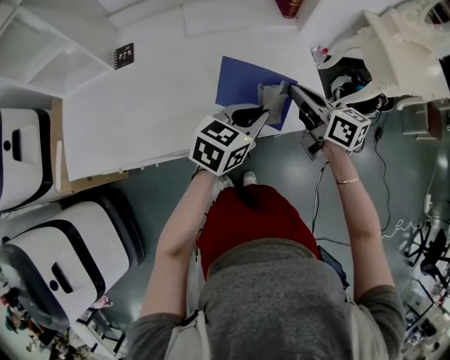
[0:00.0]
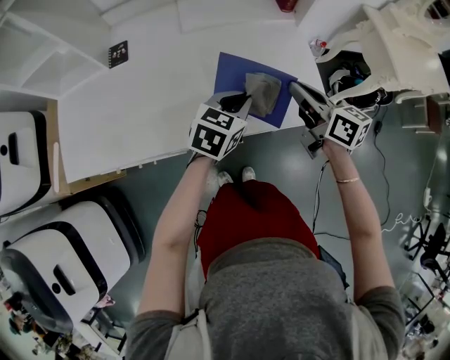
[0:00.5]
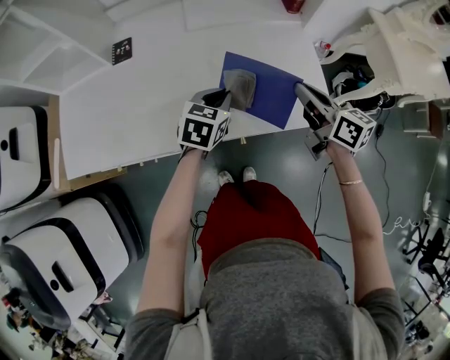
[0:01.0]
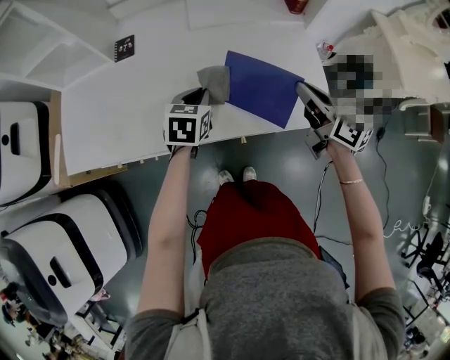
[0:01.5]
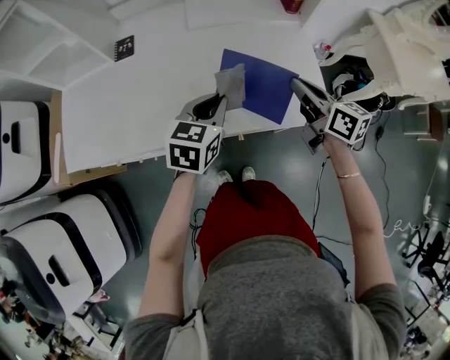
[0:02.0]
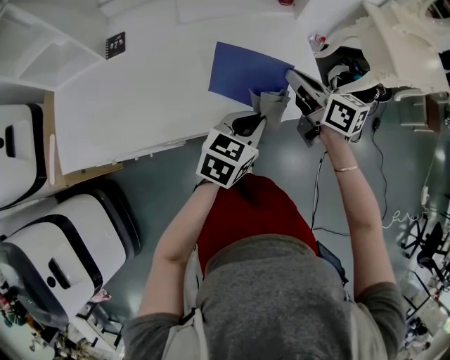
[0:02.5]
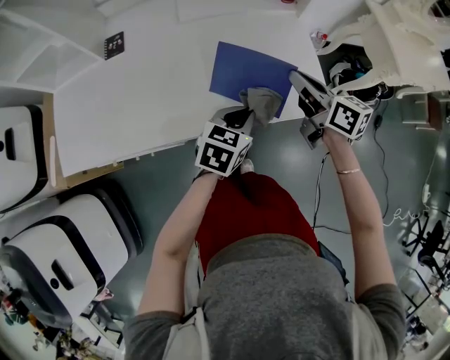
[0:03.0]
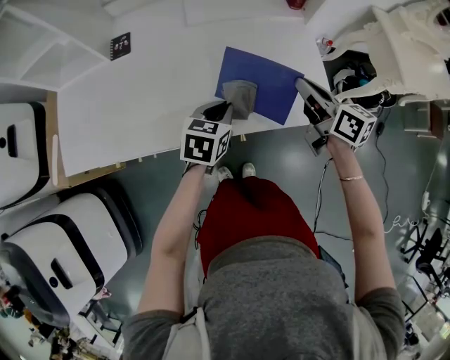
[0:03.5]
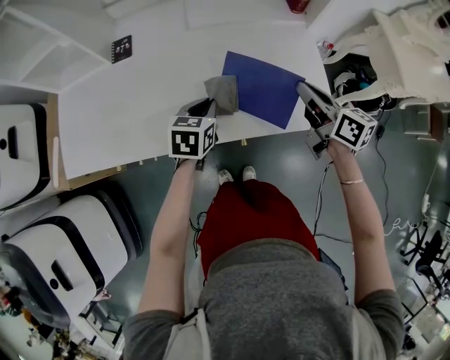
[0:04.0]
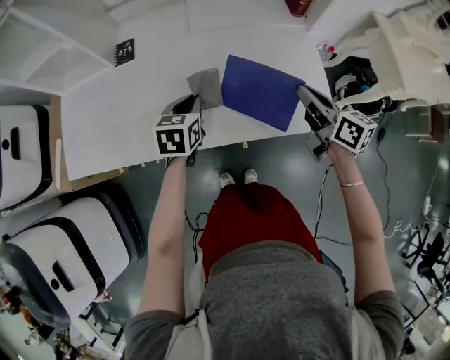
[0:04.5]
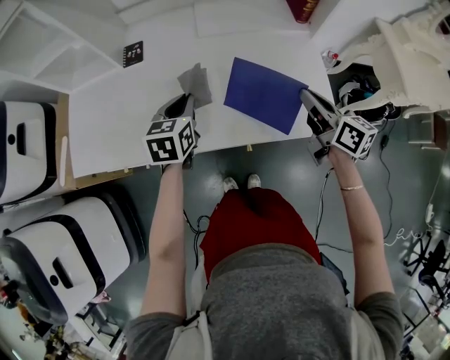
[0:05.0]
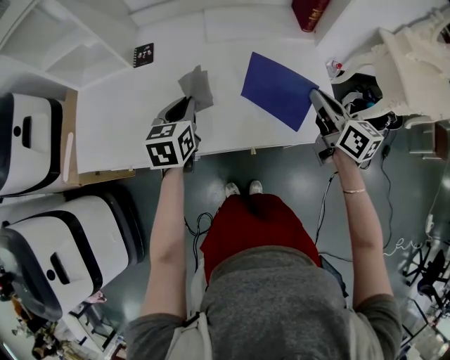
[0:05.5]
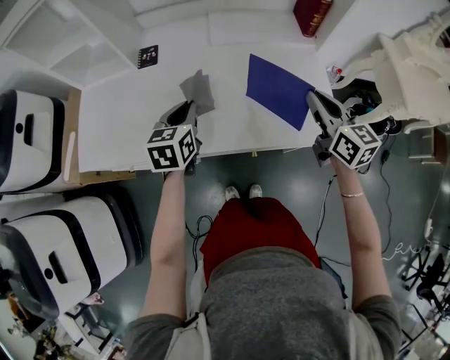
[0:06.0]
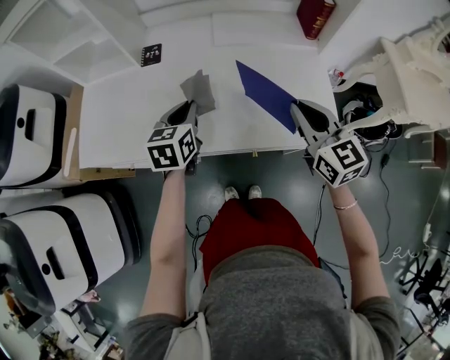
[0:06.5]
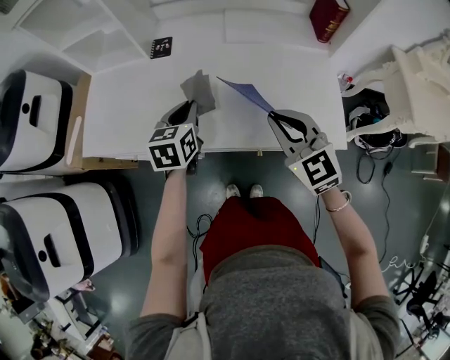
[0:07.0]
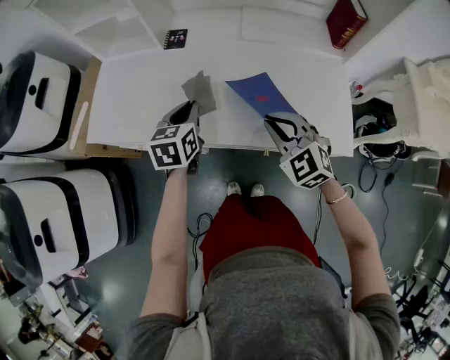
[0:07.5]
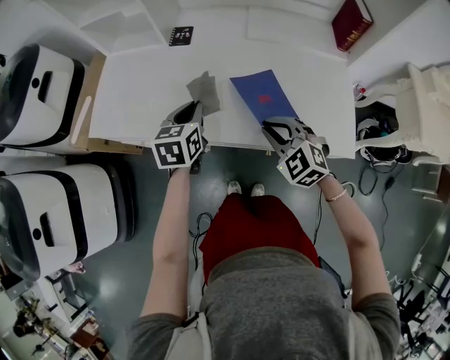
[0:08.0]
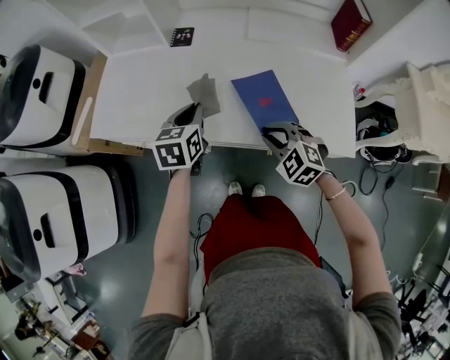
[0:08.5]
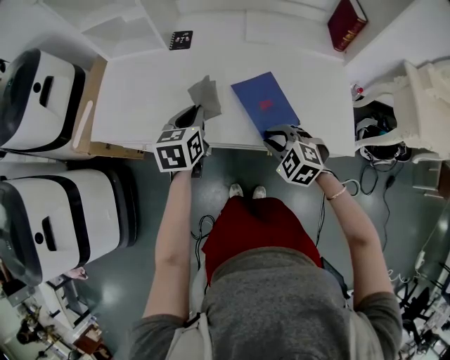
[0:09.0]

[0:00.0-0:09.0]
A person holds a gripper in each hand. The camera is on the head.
0:00.0 to 0:02.0: The left gripper goes roughly 10 cm to the left, and swivels roughly 20 degrees.
0:02.0 to 0:04.5: The left gripper heads to the left, downward and forward, covering some 10 cm.
0:04.5 to 0:07.0: The left gripper travels to the left and upward by roughly 10 cm. Meanwhile the right gripper travels to the left by approximately 15 cm, and twists about 60 degrees counterclockwise, seen from behind.
0:07.0 to 0:09.0: The right gripper moves downward, about 15 cm, and rotates some 40 degrees.

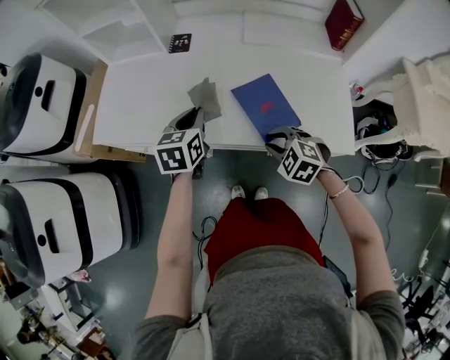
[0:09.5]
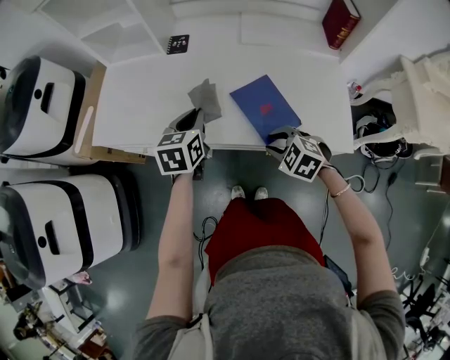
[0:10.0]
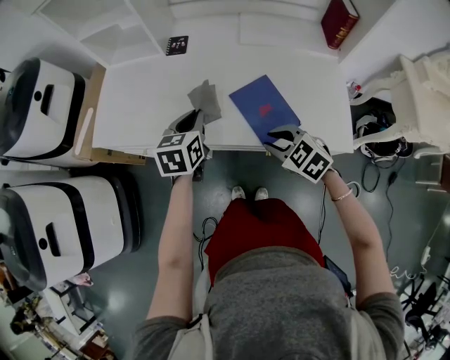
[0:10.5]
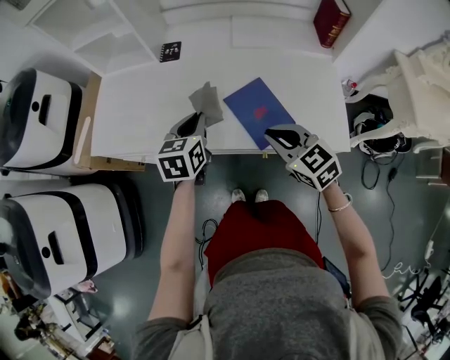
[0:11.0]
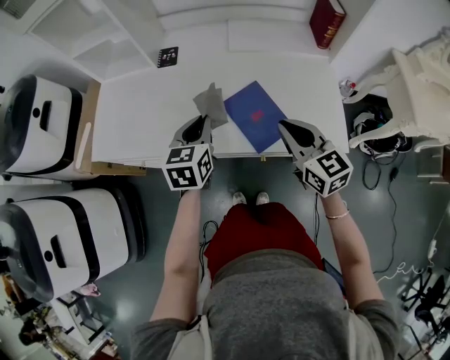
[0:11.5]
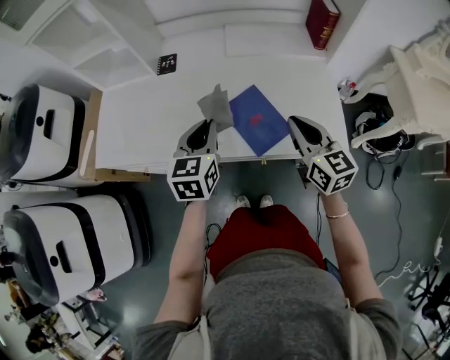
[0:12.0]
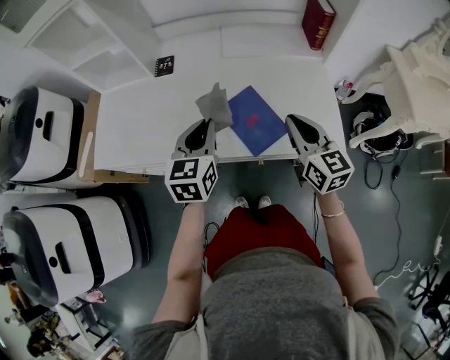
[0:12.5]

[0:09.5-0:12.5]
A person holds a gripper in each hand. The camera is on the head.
0:09.5 to 0:11.0: The right gripper shifts some 10 cm upward, and changes its angle by approximately 40 degrees.
0:11.0 to 0:12.5: The right gripper is displaced to the right by some 10 cm, and rotates about 30 degrees; the left gripper travels upward and to the right by roughly 10 cm.

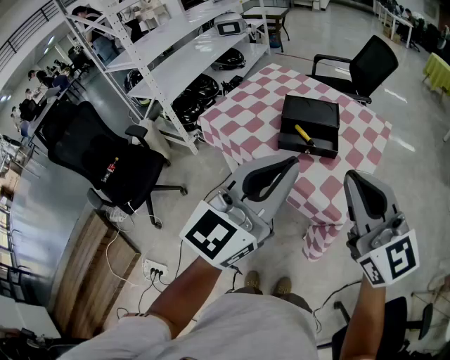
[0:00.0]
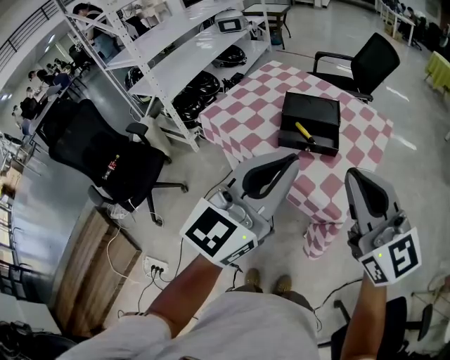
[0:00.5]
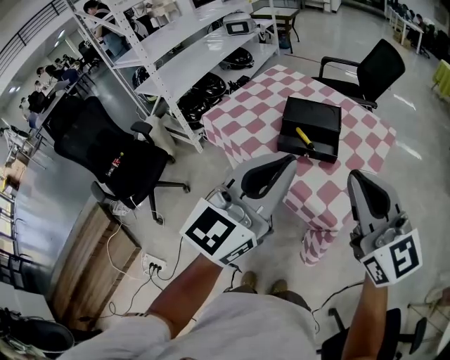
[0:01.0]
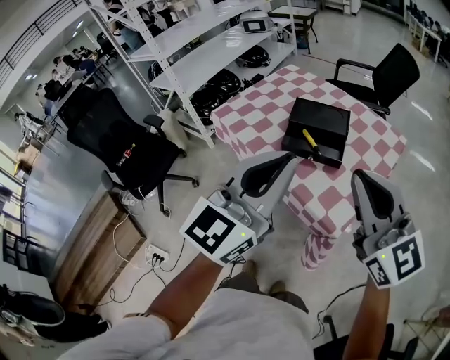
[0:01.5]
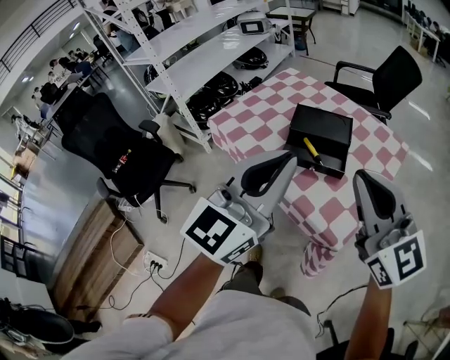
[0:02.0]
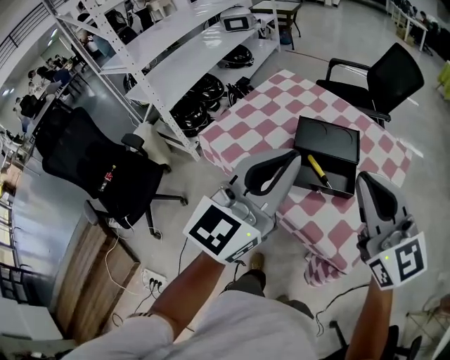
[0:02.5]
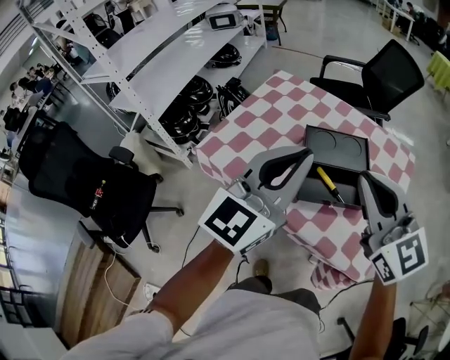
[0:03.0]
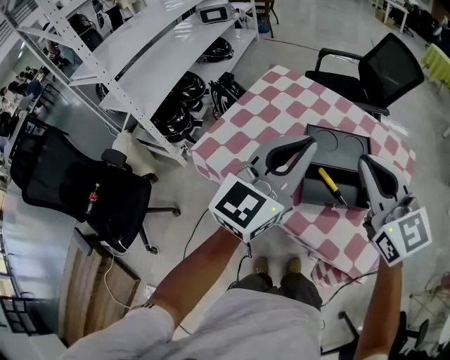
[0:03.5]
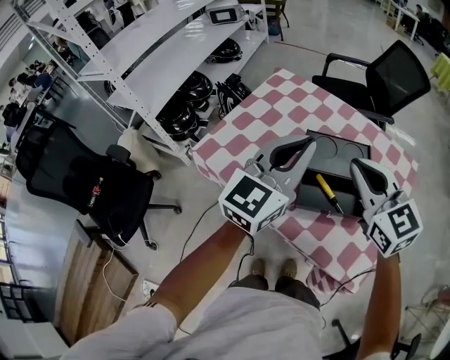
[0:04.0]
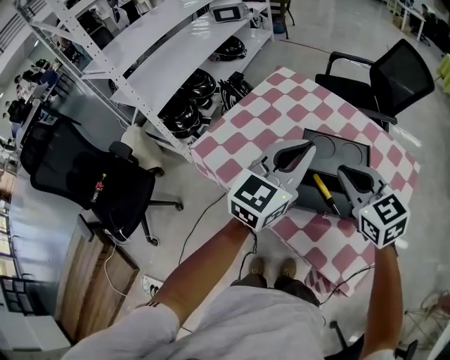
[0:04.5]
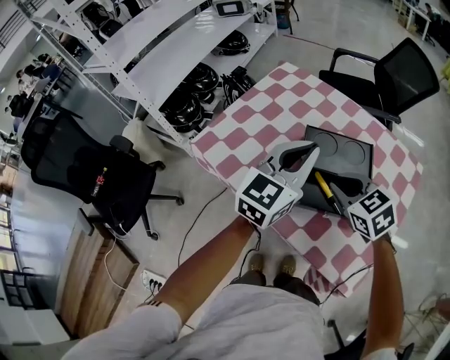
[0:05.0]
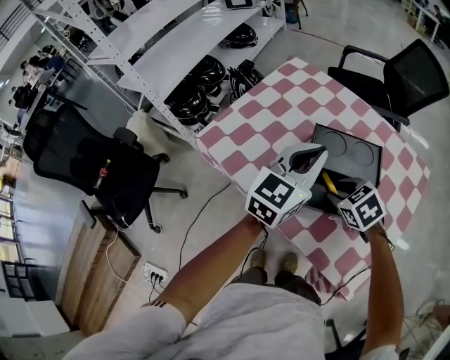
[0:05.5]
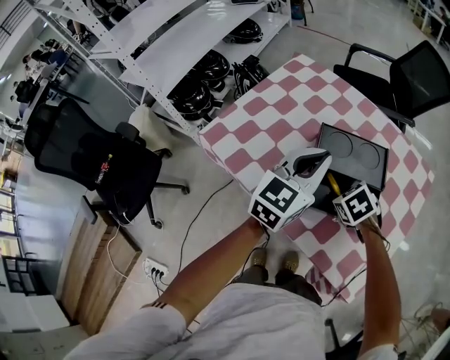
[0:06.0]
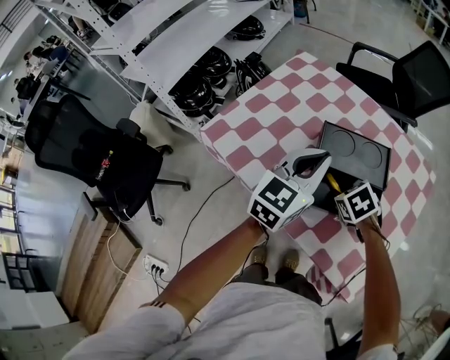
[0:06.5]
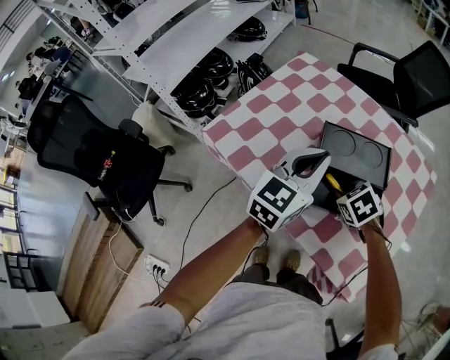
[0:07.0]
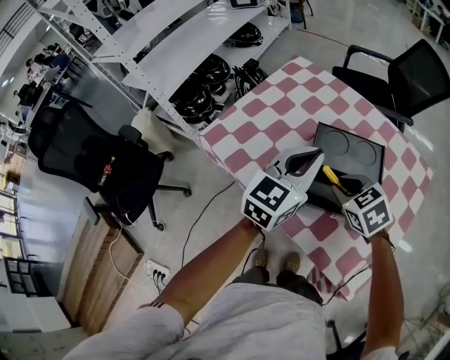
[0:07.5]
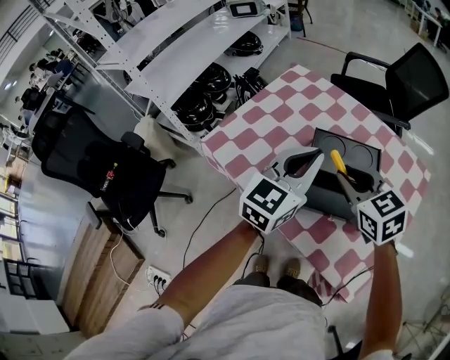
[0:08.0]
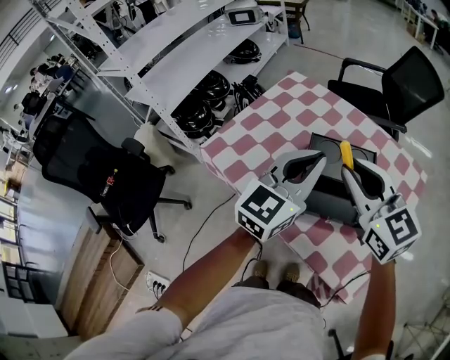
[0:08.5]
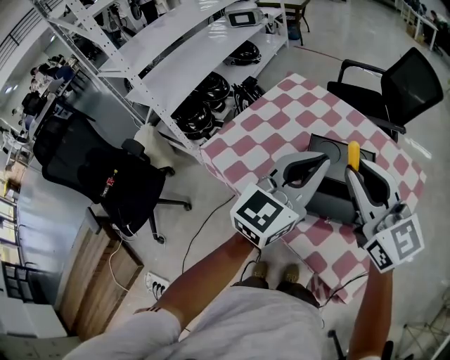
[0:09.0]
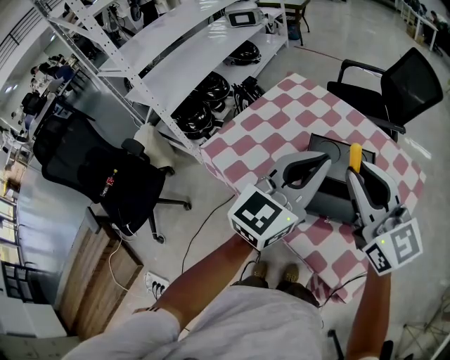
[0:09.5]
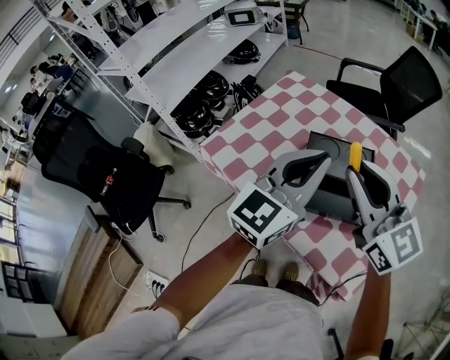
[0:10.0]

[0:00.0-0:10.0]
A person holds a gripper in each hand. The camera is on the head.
0:00.0 to 0:02.0: The two grippers go about 10 cm forward.
0:02.0 to 0:04.0: The left gripper is displaced forward by some 25 cm. The right gripper travels forward and to the left by about 25 cm, and changes its angle by approximately 20 degrees.
0:04.0 to 0:06.0: The left gripper travels downward by approximately 10 cm; the right gripper moves downward, approximately 25 cm, angles its fingers downward, by roughly 50 degrees, and opens.
0:06.0 to 0:08.0: The right gripper heads upward, covering some 15 cm, and points its fingers approximately 40 degrees further upward.
0:08.0 to 0:10.0: The left gripper heads upward, covering approximately 5 cm; the right gripper travels upward and backward by roughly 15 cm, and tips its fingers upward by about 30 degrees.

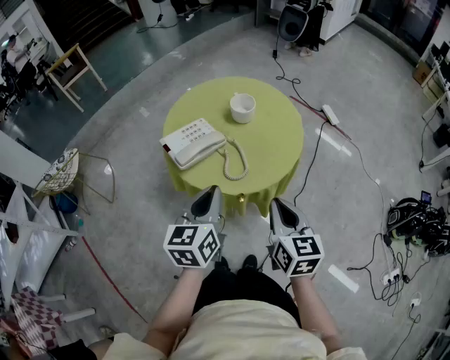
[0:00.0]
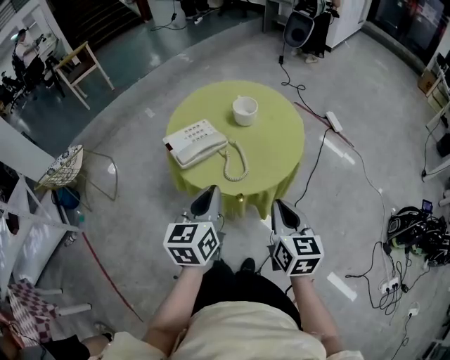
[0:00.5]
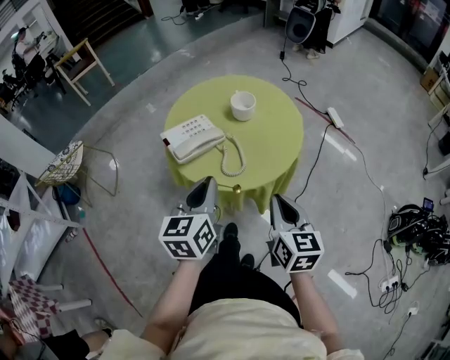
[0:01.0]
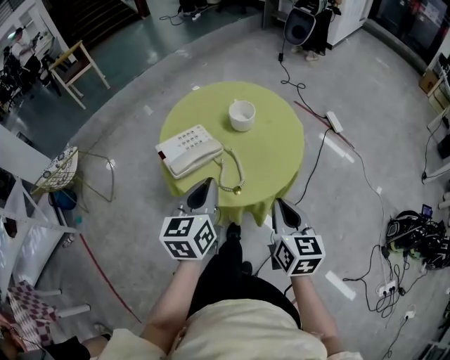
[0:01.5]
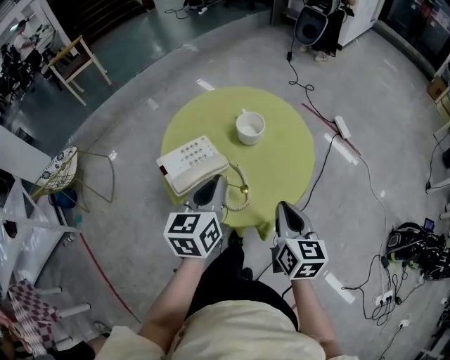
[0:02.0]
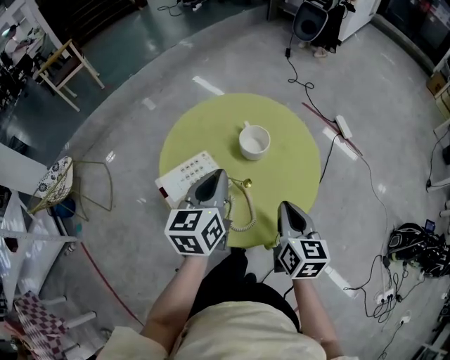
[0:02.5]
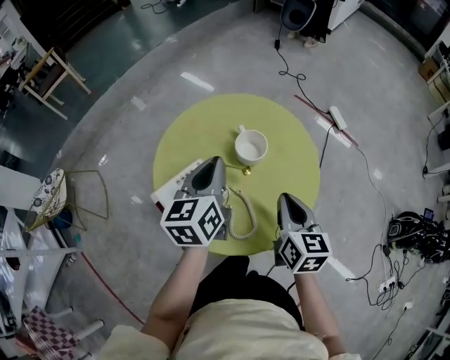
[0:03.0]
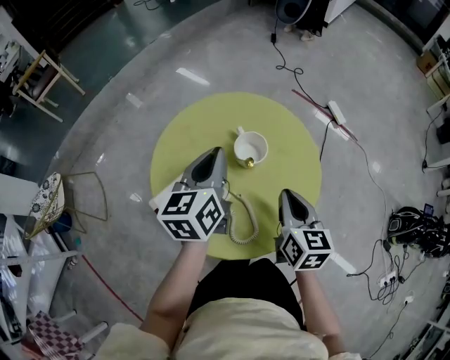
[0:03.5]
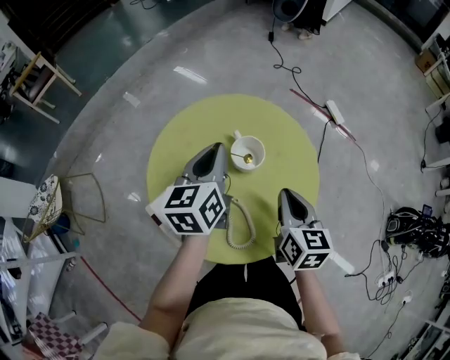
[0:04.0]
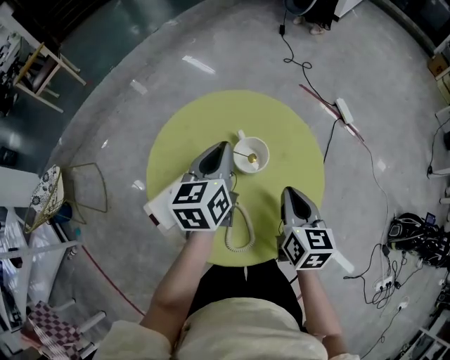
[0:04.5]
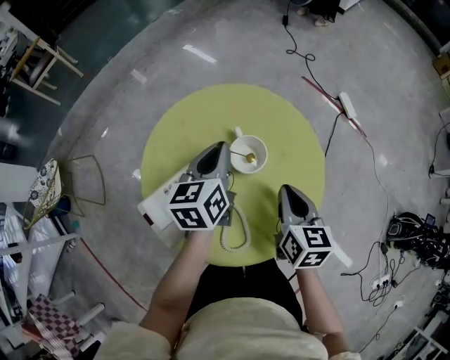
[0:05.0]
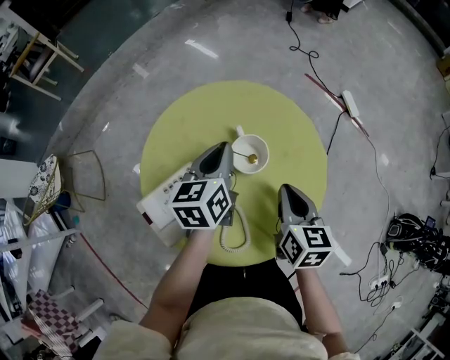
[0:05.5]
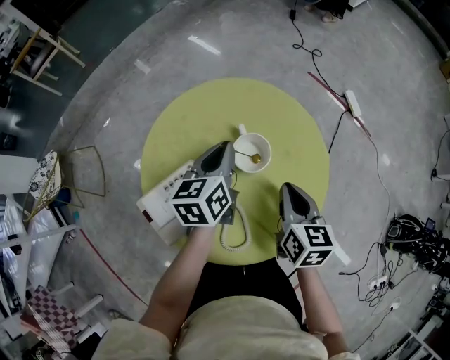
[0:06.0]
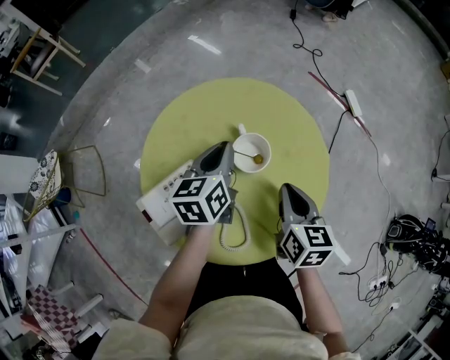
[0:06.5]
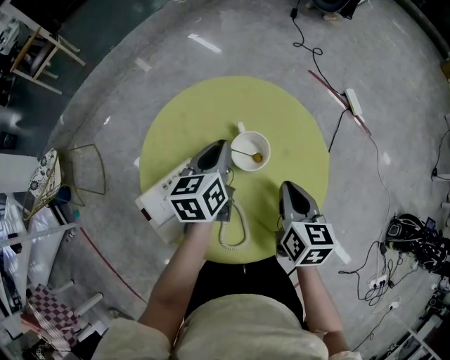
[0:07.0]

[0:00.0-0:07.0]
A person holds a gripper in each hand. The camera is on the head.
0:00.0 to 0:02.0: The grippers both shift forward by approximately 15 cm.
0:02.0 to 0:03.5: Both grippers travel together forward, approximately 15 cm.
0:03.5 to 0:05.0: The left gripper goes some 10 cm downward and forward; the right gripper heads forward, covering some 5 cm.
0:05.0 to 0:07.0: The grippers make only small movements.
